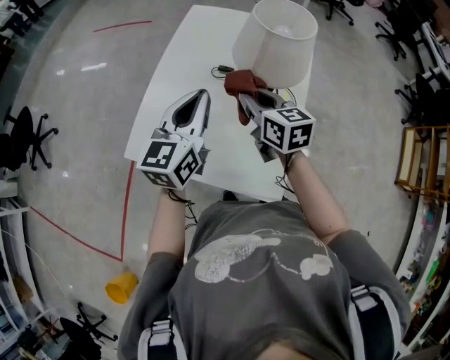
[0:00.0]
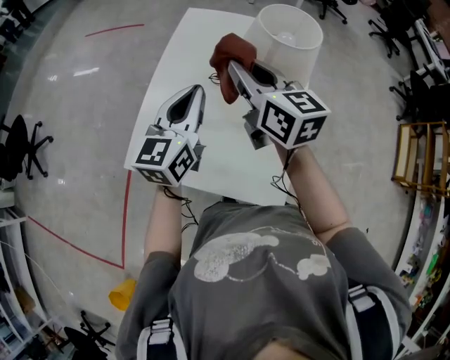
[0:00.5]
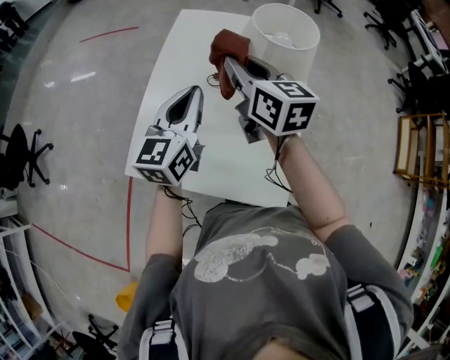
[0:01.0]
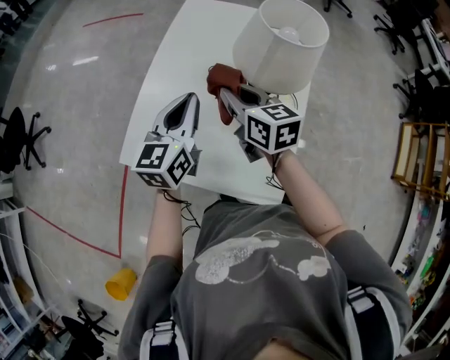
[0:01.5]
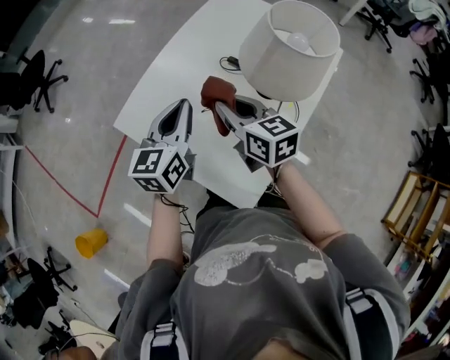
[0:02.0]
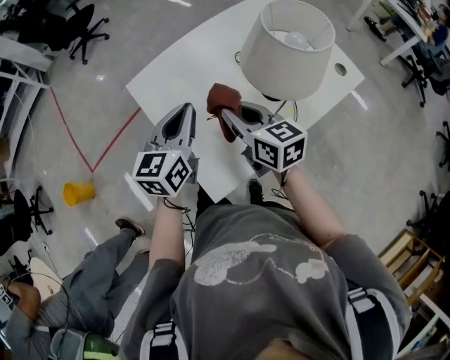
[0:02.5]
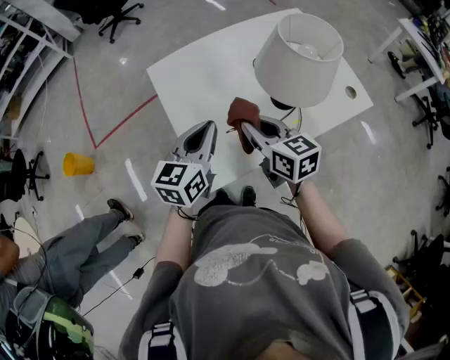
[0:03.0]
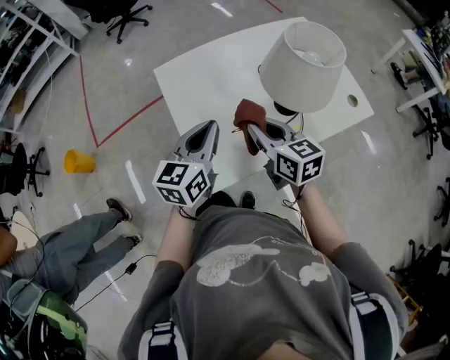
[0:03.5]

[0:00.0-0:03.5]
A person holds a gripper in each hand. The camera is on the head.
0:00.0 to 0:02.0: The left gripper travels downward by roughly 5 cm, and turns by about 20 degrees; the right gripper reaches approximately 10 cm upward, then returns, and turns by some 20 degrees.
0:02.0 to 0:03.5: The left gripper shifts by about 15 cm, and rotates approximately 20 degrees. The right gripper ends up some 15 cm from where it was, and turns by some 30 degrees.

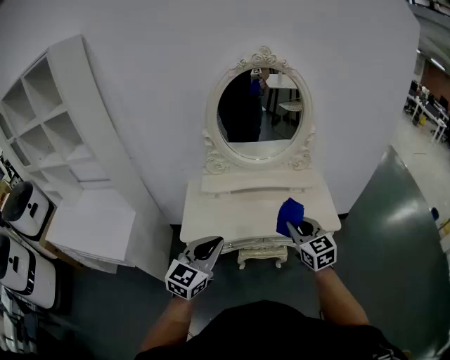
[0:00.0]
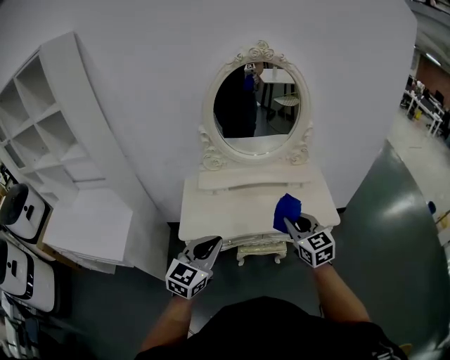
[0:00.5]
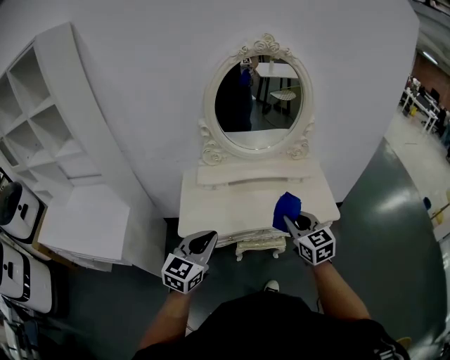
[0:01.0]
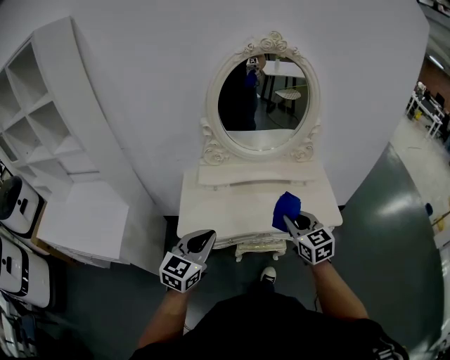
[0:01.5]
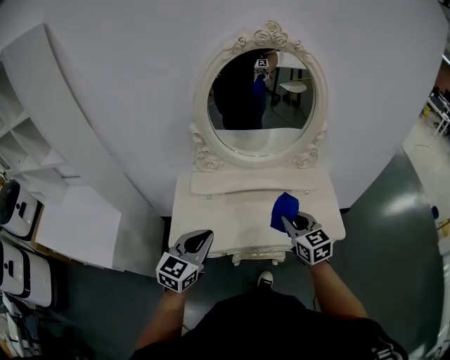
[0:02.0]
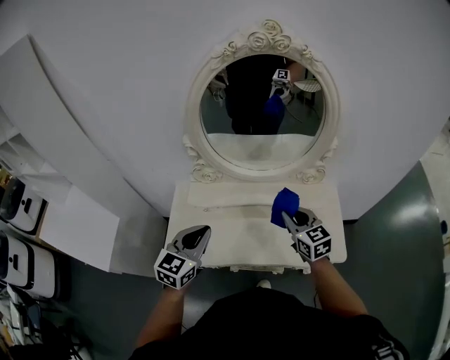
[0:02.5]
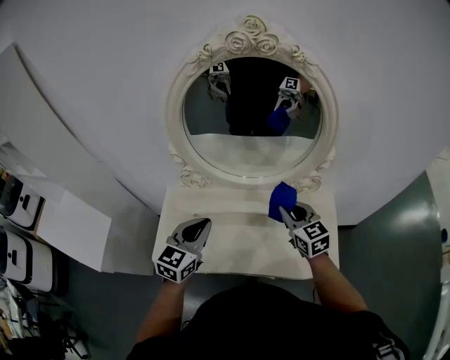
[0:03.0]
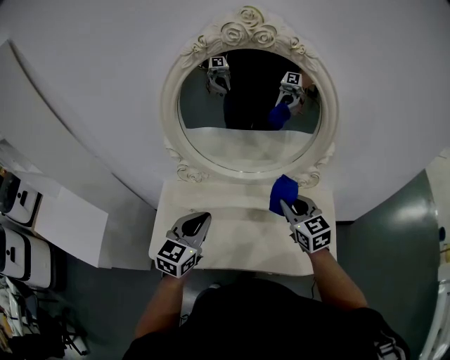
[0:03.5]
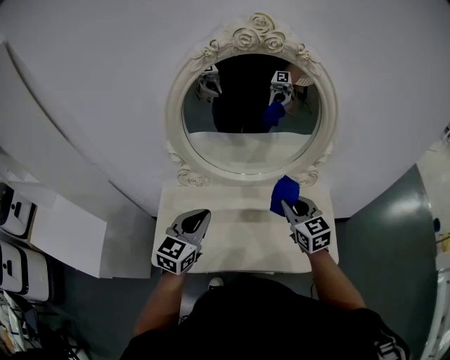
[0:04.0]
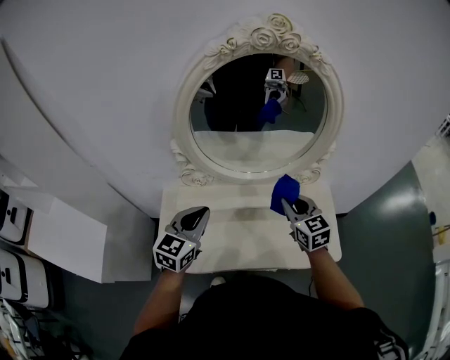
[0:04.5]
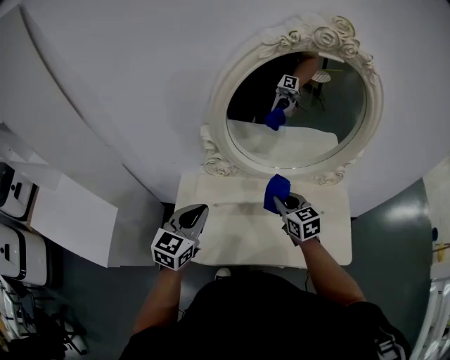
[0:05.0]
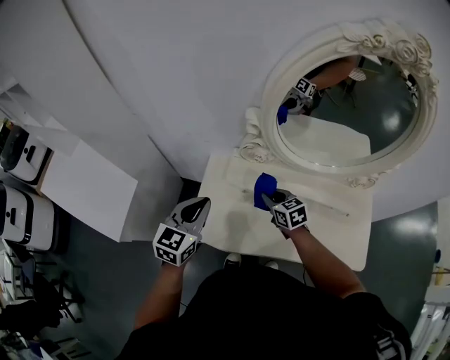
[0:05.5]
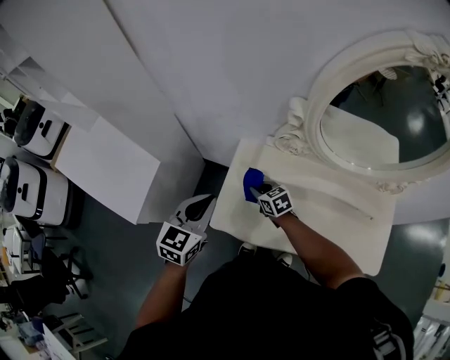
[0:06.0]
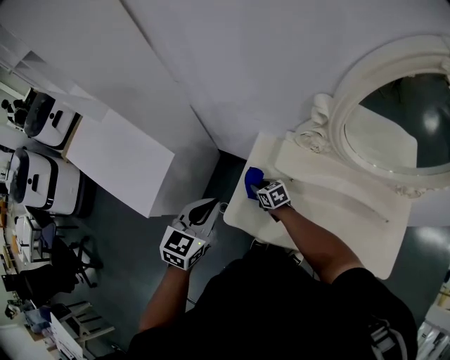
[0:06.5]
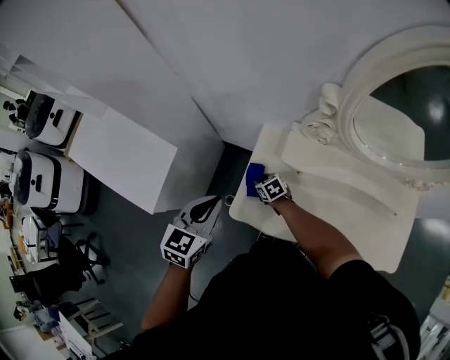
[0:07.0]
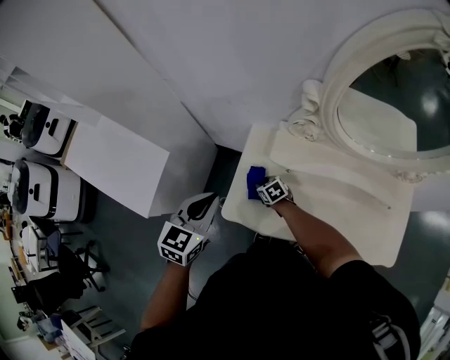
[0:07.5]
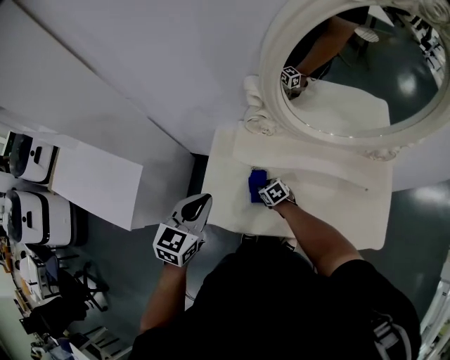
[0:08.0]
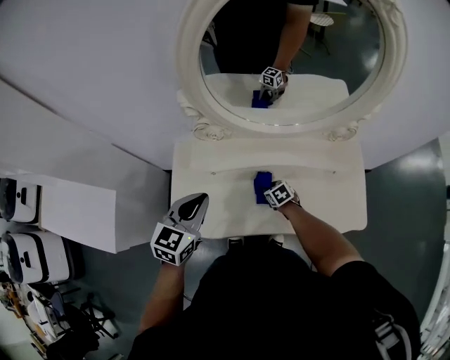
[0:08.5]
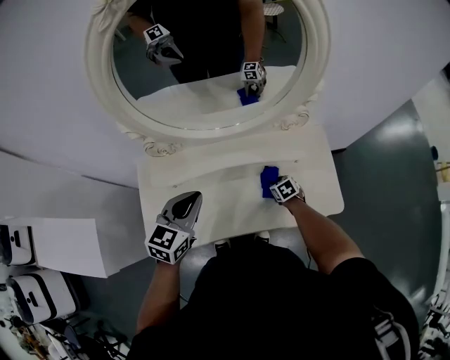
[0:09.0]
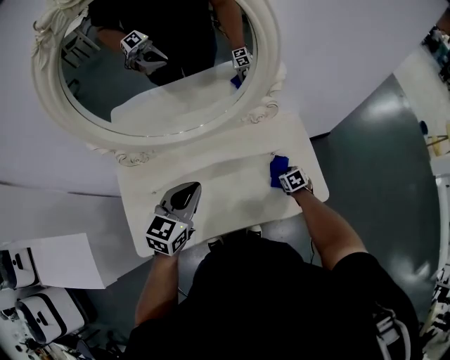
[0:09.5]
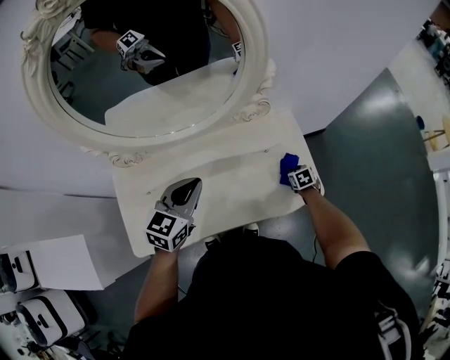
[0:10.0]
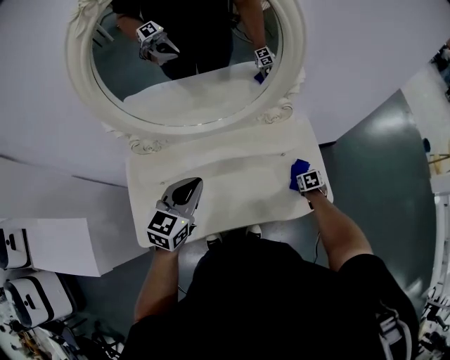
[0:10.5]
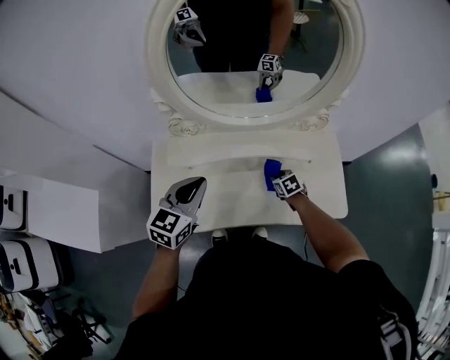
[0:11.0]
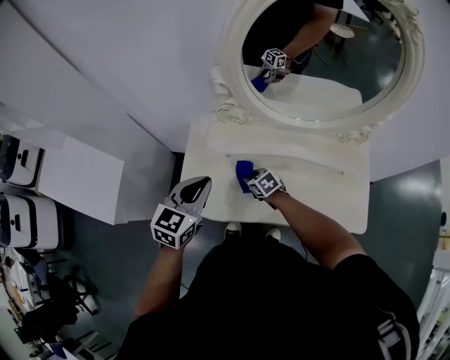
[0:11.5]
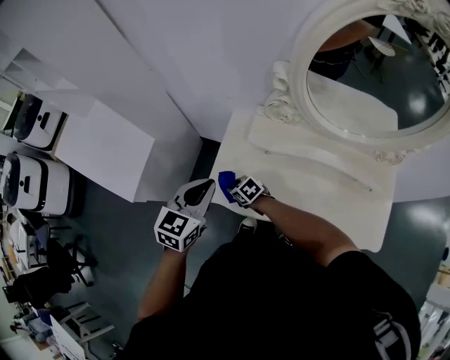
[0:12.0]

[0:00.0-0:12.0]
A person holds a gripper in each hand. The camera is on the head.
0:00.0 to 0:02.0: Both grippers travel together forward, some 15 cm.
0:02.0 to 0:04.0: Both grippers travel together forward, some 20 cm.
0:04.0 to 0:06.0: The left gripper shifts by about 30 cm, and changes its angle by roughly 20 degrees; the right gripper shifts by some 50 cm, and swivels roughly 40 degrees.
0:06.0 to 0:08.0: The right gripper moves downward, to the right and backward, about 20 cm. Meanwhile the left gripper shifts roughly 5 cm to the right.
0:08.0 to 0:10.0: The right gripper shifts by some 60 cm, and swivels roughly 50 degrees. The left gripper changes place by approximately 40 cm, and swivels some 30 degrees.
0:10.0 to 0:12.0: Both grippers are carried roughly 60 cm. The left gripper turns by some 40 degrees; the right gripper swivels some 70 degrees.

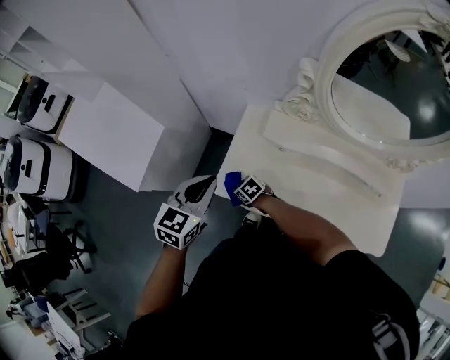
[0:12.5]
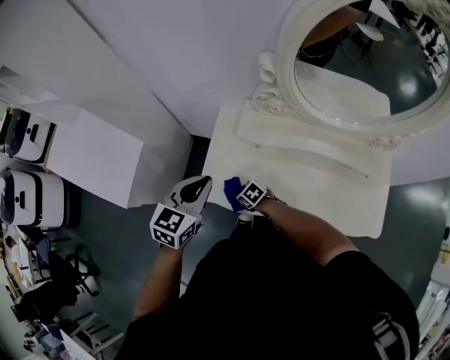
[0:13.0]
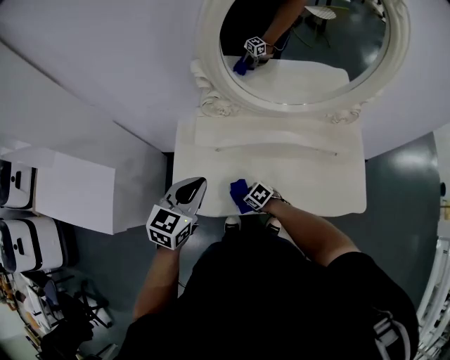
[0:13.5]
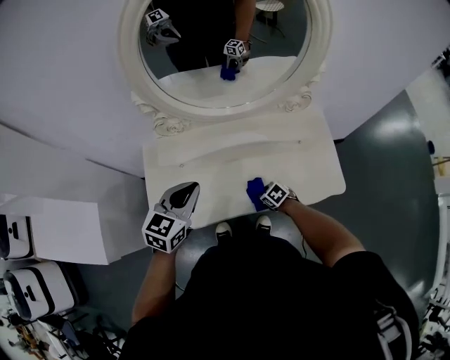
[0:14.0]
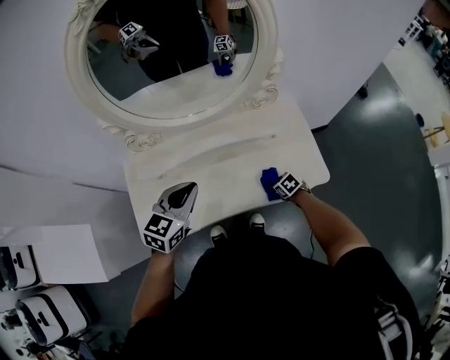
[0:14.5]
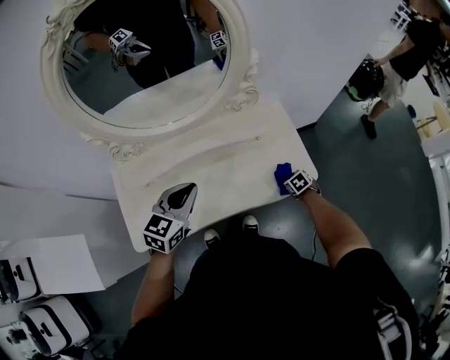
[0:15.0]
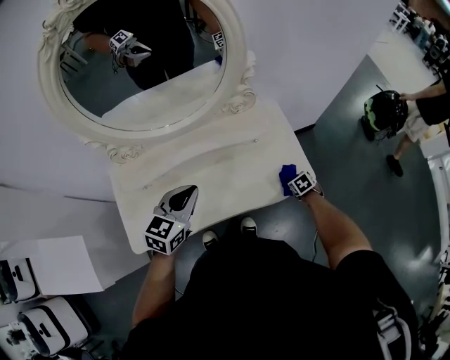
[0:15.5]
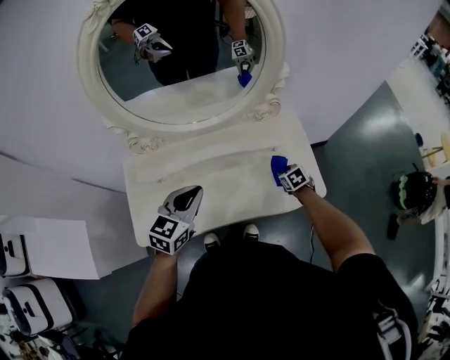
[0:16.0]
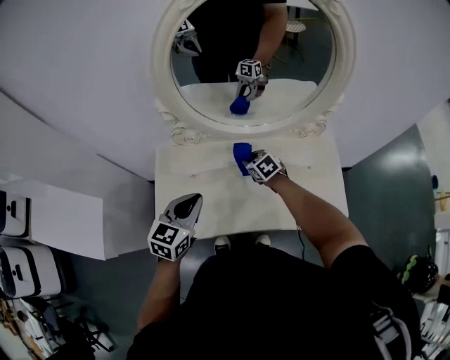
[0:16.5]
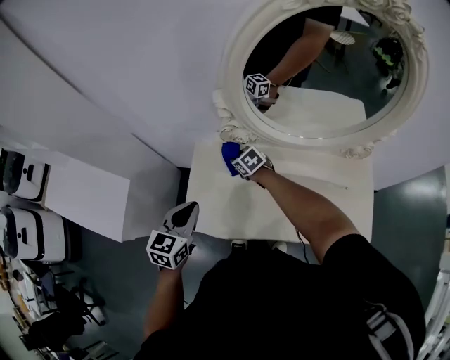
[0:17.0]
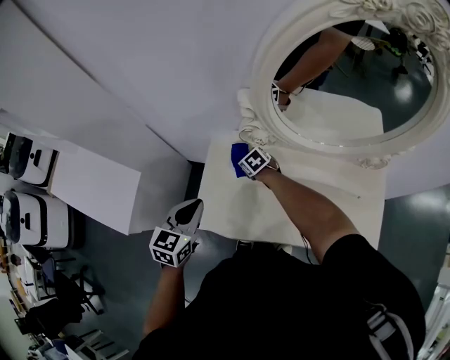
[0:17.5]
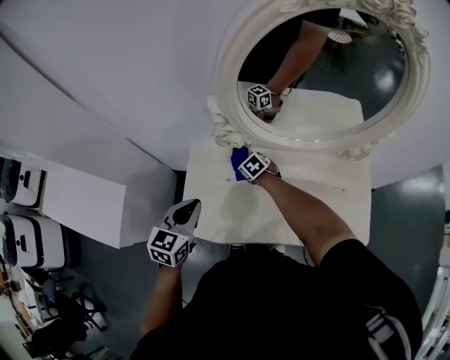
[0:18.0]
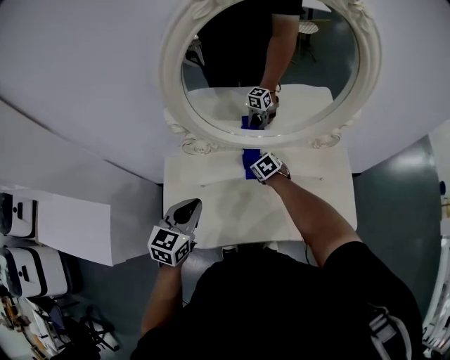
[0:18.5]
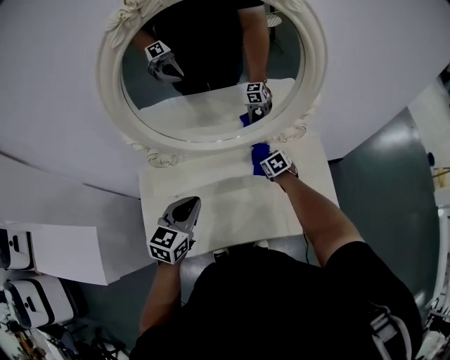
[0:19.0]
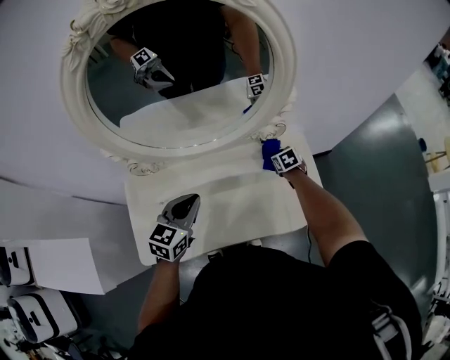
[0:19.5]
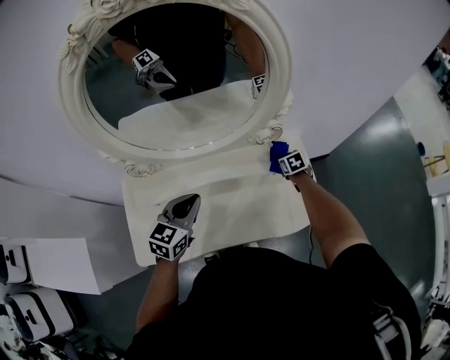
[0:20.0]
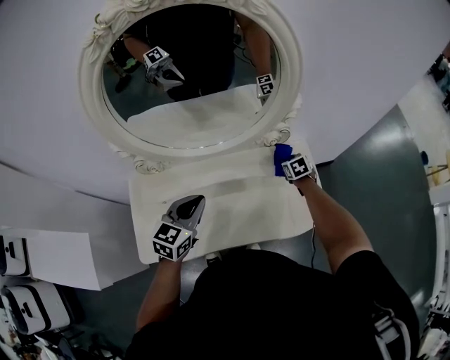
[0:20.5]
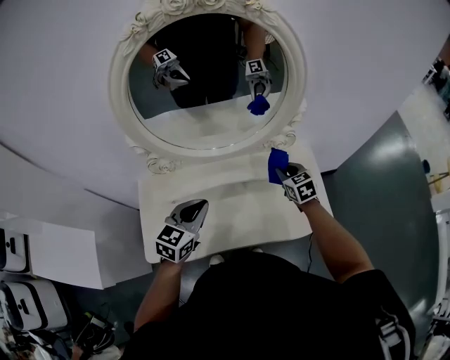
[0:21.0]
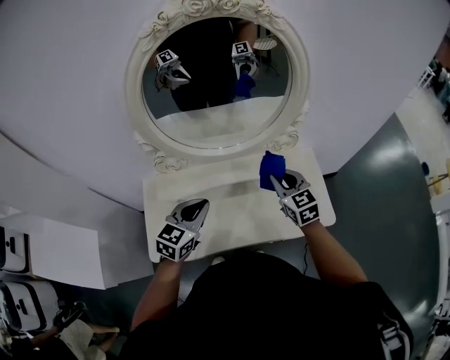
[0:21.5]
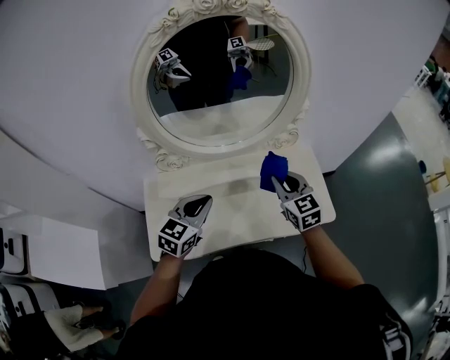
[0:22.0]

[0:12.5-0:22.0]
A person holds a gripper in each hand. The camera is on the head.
0:12.5 to 0:14.5: The right gripper ends up some 60 cm from where it was, and turns by about 50 degrees, while the left gripper shifts by some 35 cm, and swivels roughly 40 degrees.
0:14.5 to 0:16.5: The left gripper shifts by some 10 cm. Meanwhile the right gripper shifts by about 35 cm, and rotates roughly 30 degrees.
0:16.5 to 0:18.0: The right gripper is displaced to the left, forward and downward by some 20 cm, while the left gripper is displaced to the left and forward by roughly 15 cm.
0:18.0 to 0:20.0: The left gripper ends up some 30 cm from where it was, and swivels about 20 degrees. Meanwhile the right gripper moves about 50 cm, and changes its angle by roughly 40 degrees.
0:20.0 to 0:22.0: The right gripper moves upward, backward and to the left, roughly 40 cm, and tilts its fingers some 40 degrees upward. Meanwhile the left gripper goes roughly 10 cm backward.

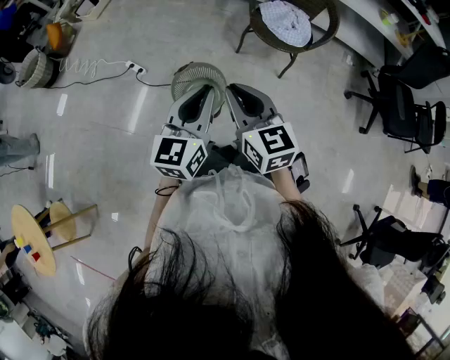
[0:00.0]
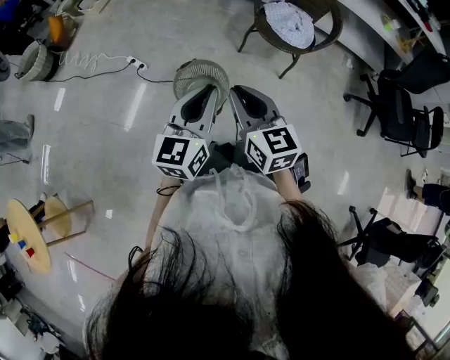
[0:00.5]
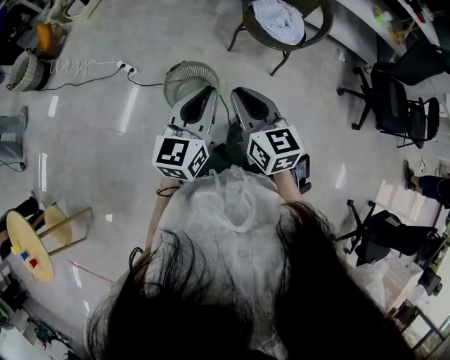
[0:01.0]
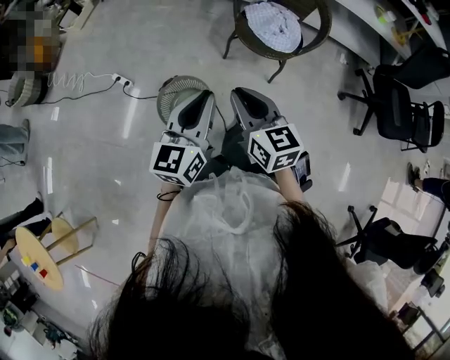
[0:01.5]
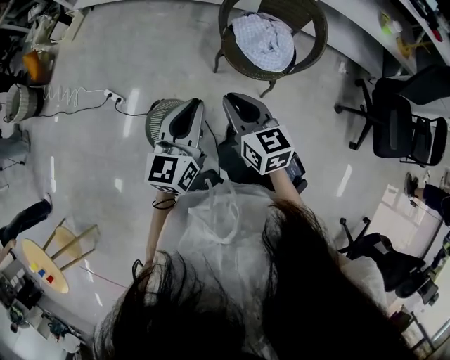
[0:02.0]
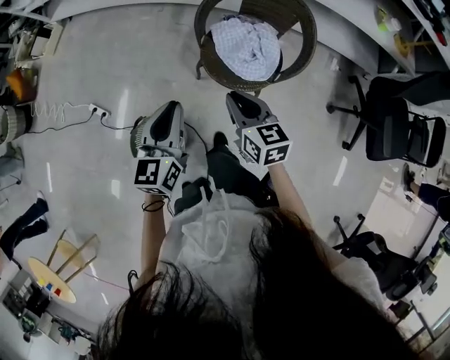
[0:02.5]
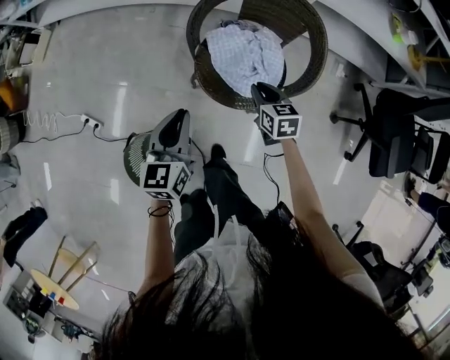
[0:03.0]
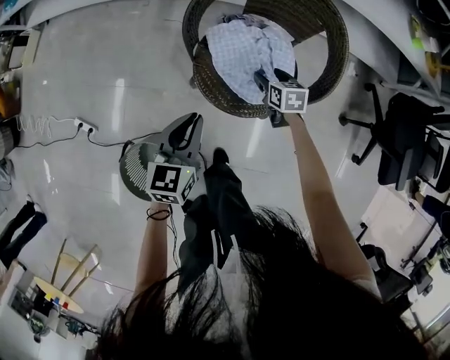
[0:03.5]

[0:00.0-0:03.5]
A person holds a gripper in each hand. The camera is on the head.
0:00.0 to 0:02.0: Both grippers move forward and to the right, approximately 30 cm.
0:02.0 to 0:03.5: The left gripper shifts about 35 cm downward, forward and to the right, and swivels approximately 20 degrees; the right gripper goes about 60 cm downward, forward and to the right, angles its fingers downward, by roughly 30 degrees, and opens its fingers.
